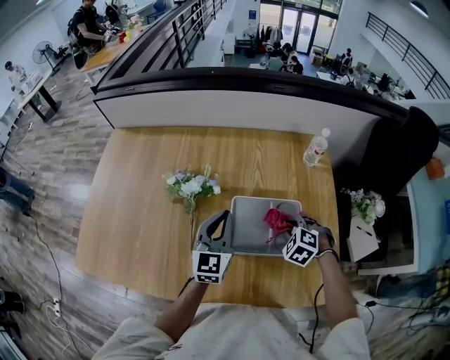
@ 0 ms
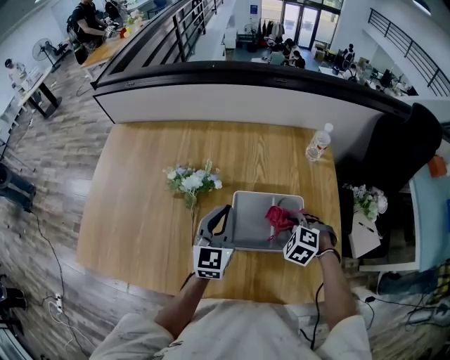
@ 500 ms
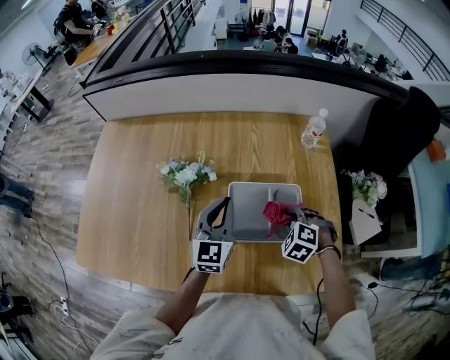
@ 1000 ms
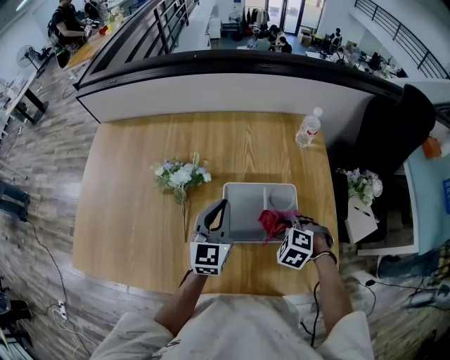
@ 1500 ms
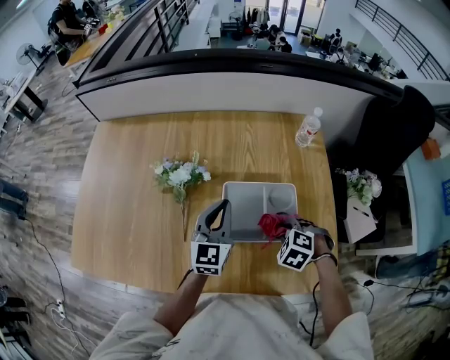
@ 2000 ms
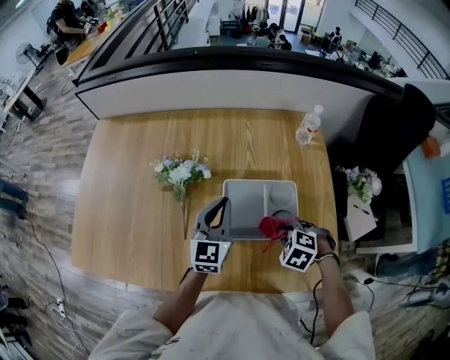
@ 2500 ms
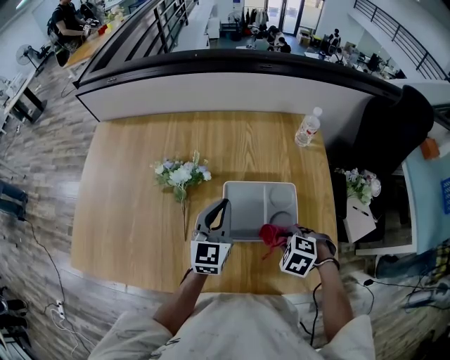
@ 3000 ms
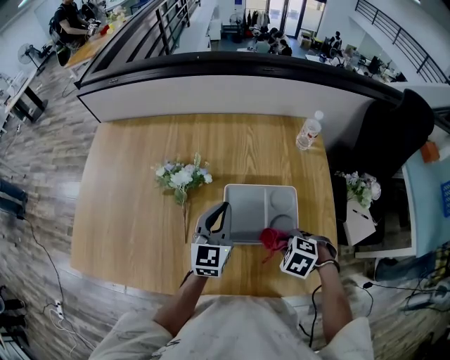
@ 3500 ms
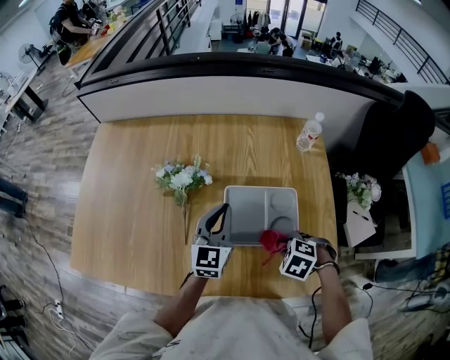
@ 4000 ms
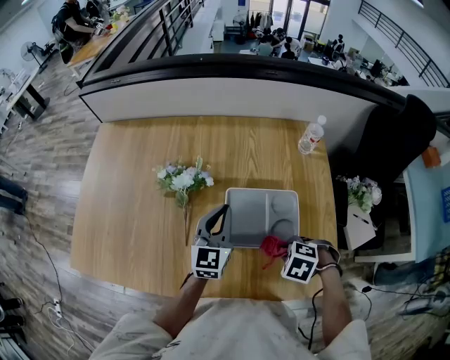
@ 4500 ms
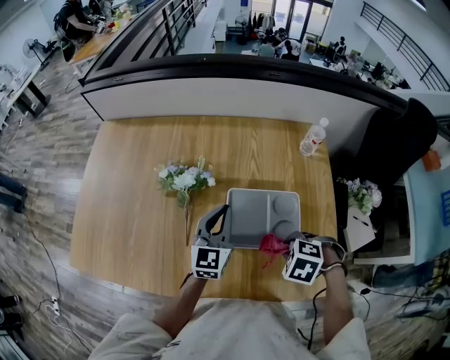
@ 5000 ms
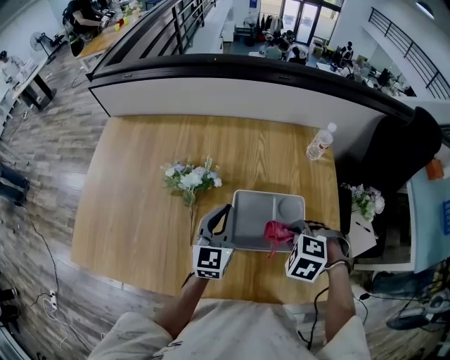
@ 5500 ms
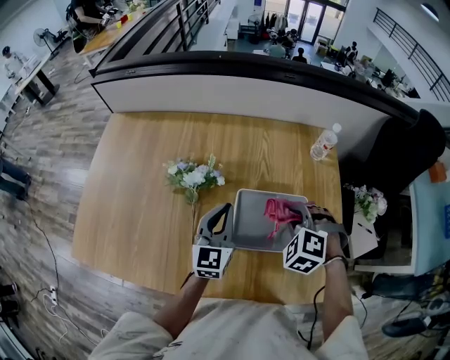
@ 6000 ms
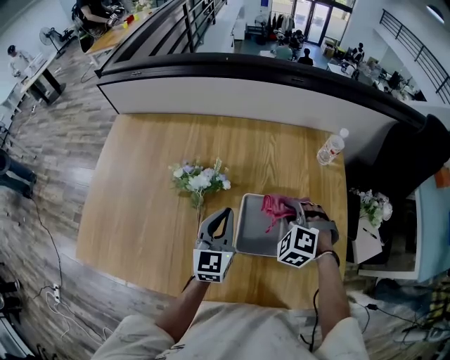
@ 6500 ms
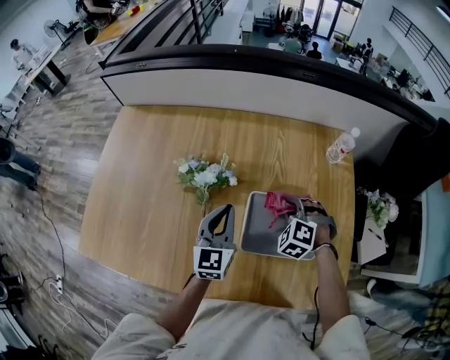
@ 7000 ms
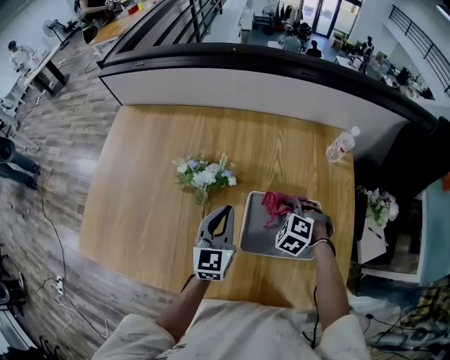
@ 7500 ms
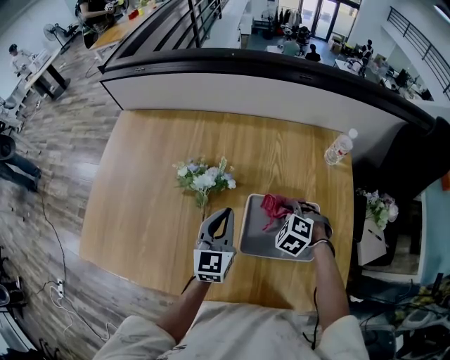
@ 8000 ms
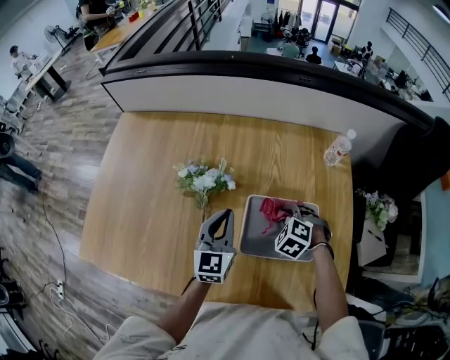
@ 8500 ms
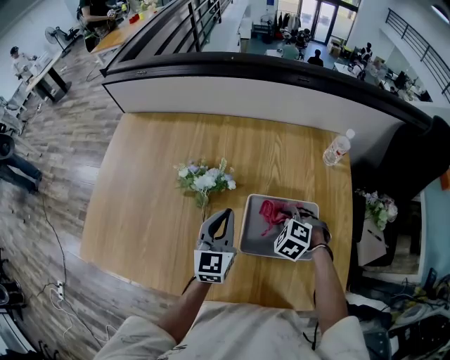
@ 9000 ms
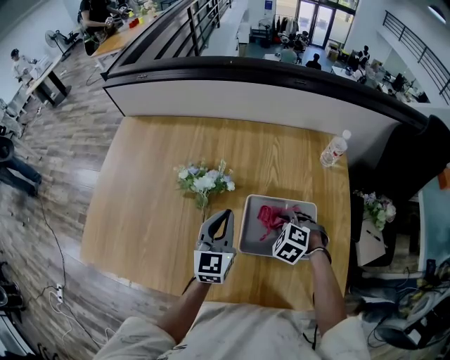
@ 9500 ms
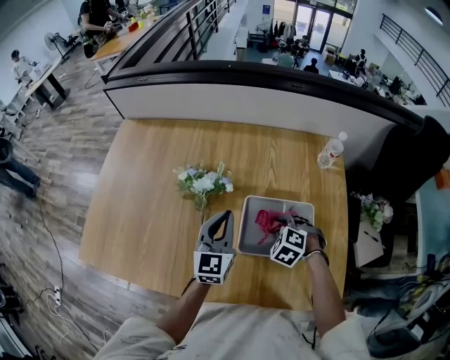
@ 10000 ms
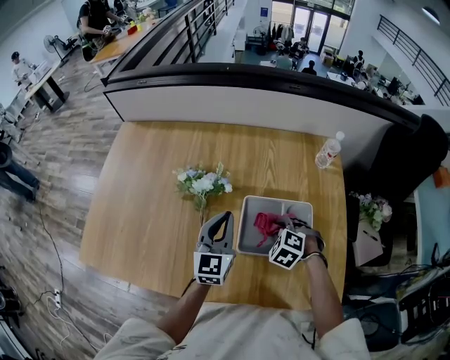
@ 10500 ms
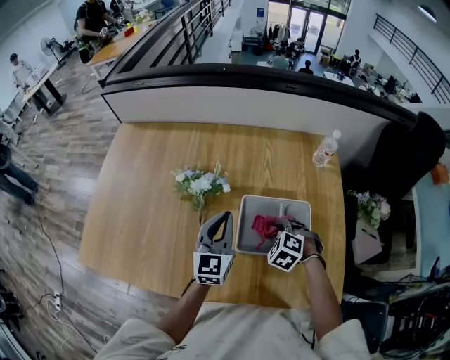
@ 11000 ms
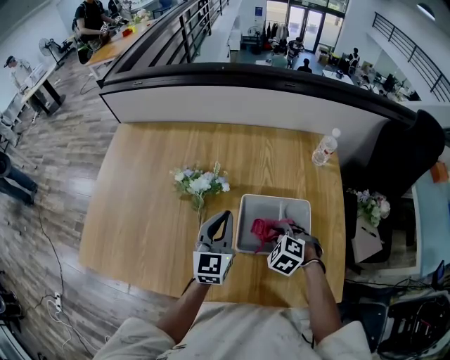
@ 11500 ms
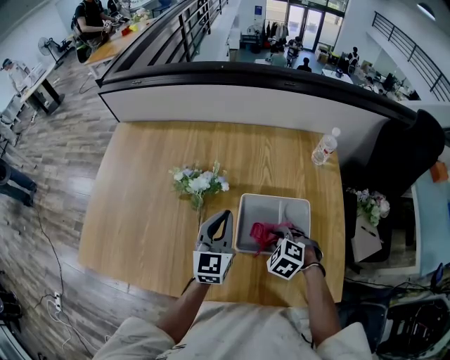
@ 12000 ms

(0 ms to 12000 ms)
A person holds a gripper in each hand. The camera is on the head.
0 ms - 2000 ms: The right gripper is displaced backward by roughly 5 cm.
2000 ms - 4000 ms: The grippers make only small movements.
4000 ms - 6000 ms: The right gripper changes place by approximately 15 cm, and swivels some 30 degrees.
6000 ms - 8000 ms: The right gripper goes roughly 10 cm downward.
8000 ms - 10000 ms: The grippers make only small movements.
10000 ms - 12000 ms: The right gripper goes about 5 cm backward.

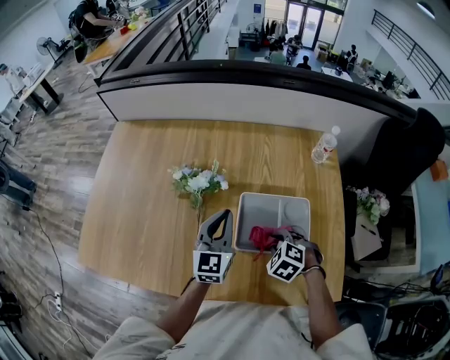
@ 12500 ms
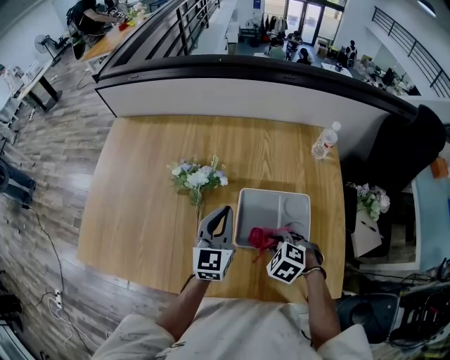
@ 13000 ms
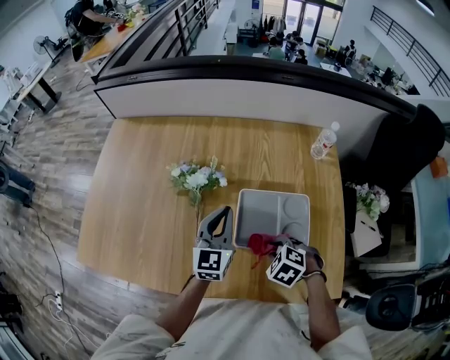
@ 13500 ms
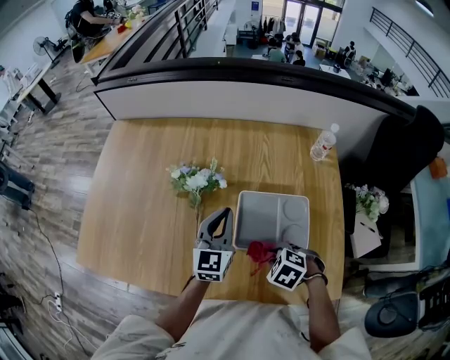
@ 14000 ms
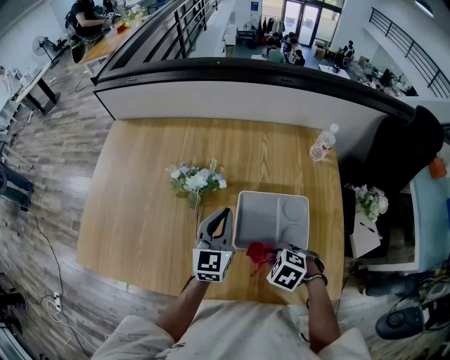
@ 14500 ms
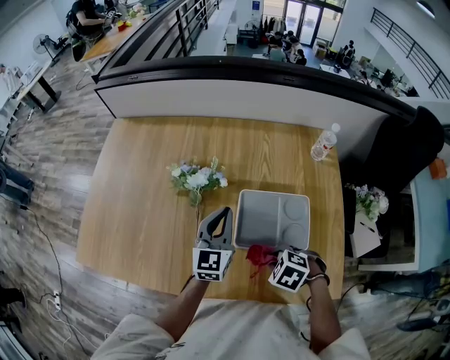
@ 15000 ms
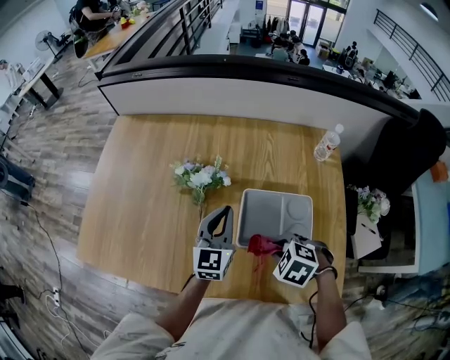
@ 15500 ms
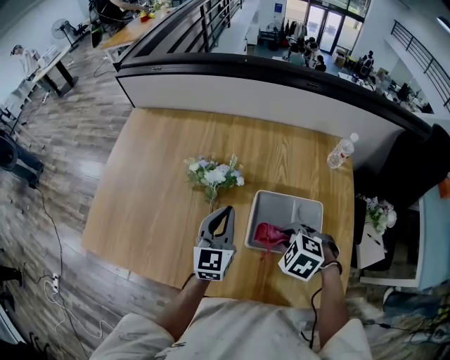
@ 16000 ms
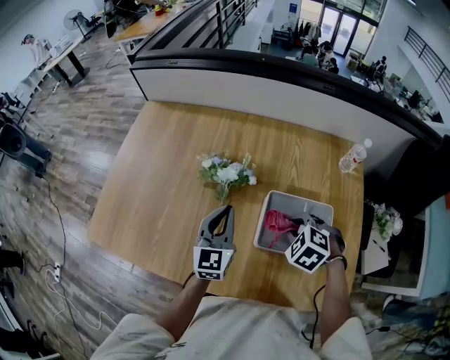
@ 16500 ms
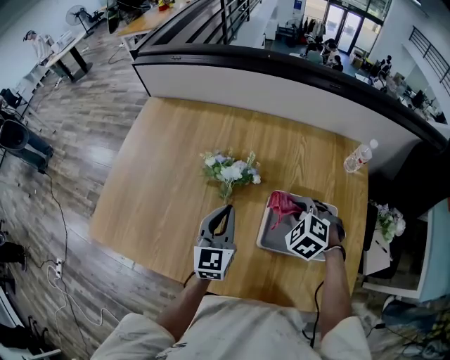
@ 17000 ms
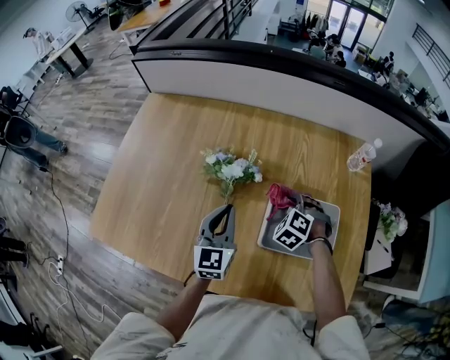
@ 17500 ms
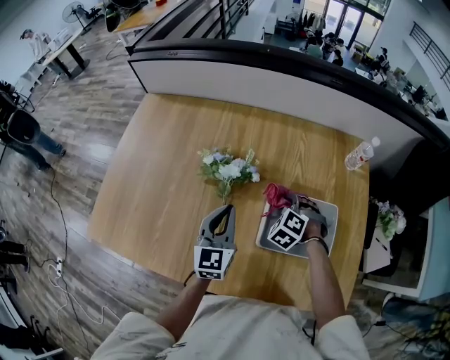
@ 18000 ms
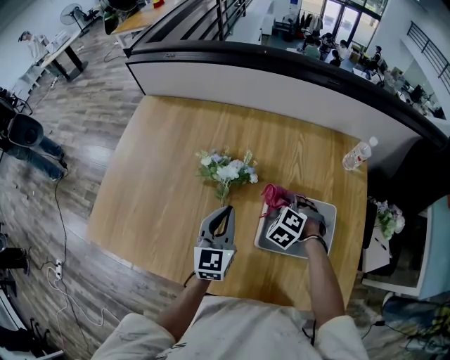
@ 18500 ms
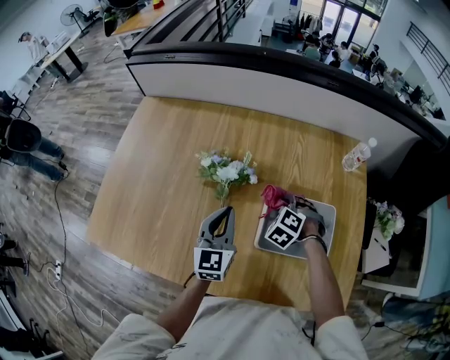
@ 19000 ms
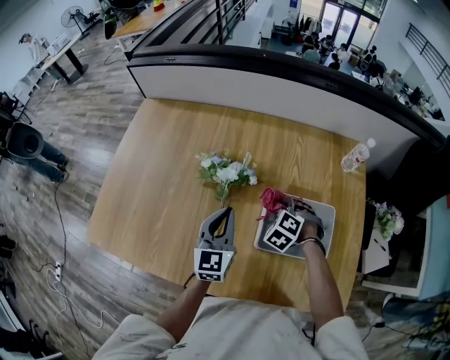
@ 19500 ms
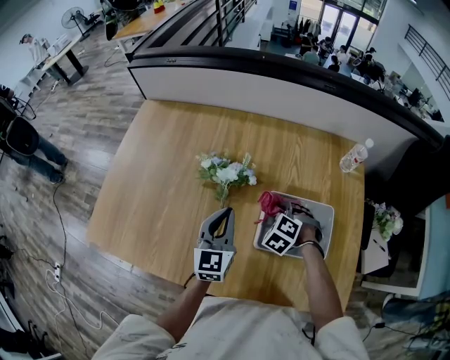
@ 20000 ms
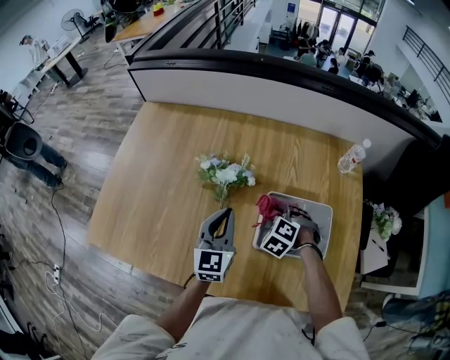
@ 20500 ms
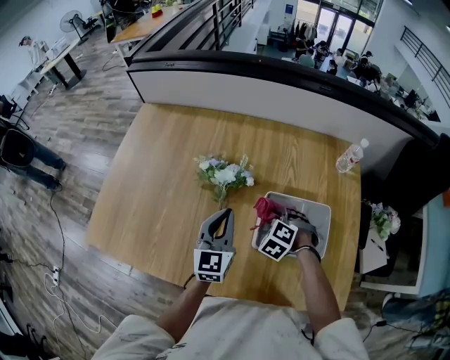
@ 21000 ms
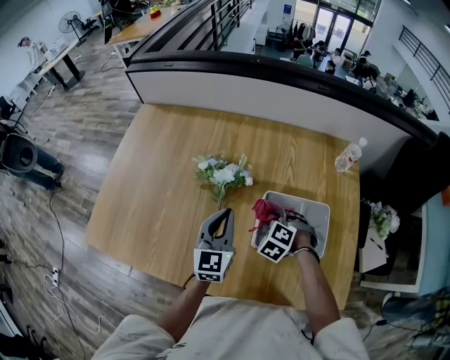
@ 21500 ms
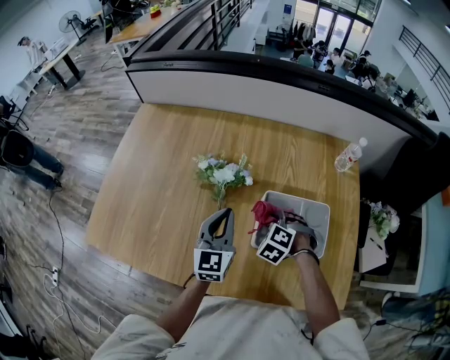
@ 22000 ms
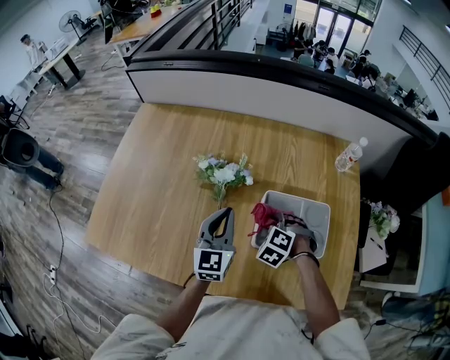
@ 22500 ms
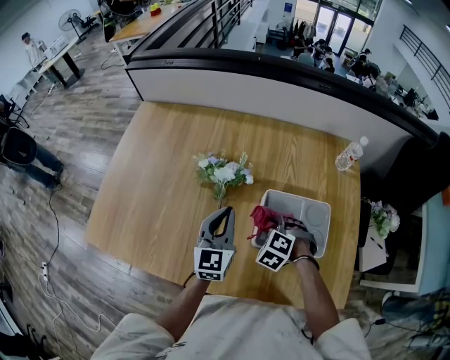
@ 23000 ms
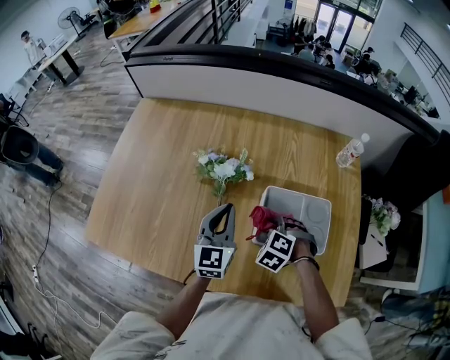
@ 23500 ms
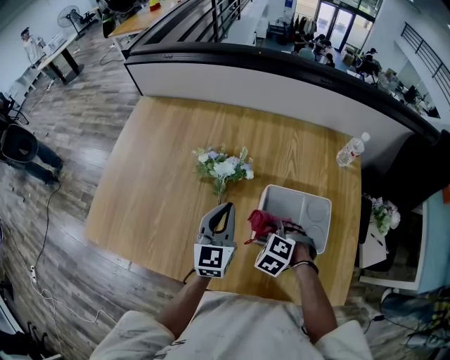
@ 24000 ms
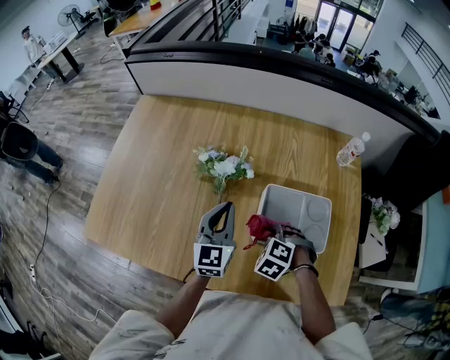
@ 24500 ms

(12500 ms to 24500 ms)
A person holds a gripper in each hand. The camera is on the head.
12500 ms - 14500 ms: The right gripper shifts by approximately 5 cm.
14500 ms - 16500 ms: The right gripper moves roughly 15 cm, while the left gripper ends up some 10 cm from where it was.
16500 ms - 18500 ms: The right gripper moves forward and downward, approximately 10 cm.
18500 ms - 20500 ms: The grippers move only a little.
20500 ms - 22500 ms: The grippers make only small movements.
22500 ms - 24500 ms: The right gripper goes some 5 cm backward.

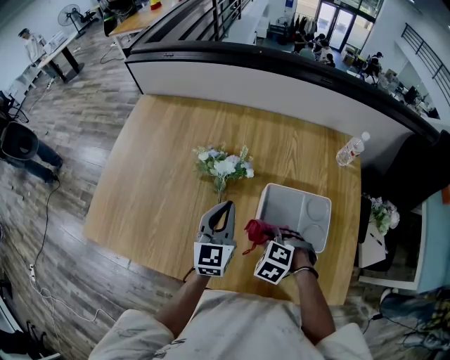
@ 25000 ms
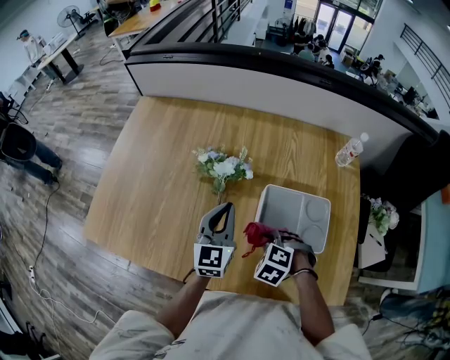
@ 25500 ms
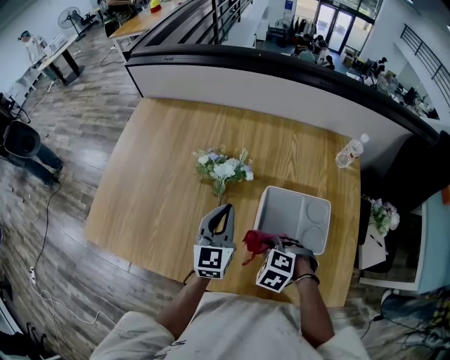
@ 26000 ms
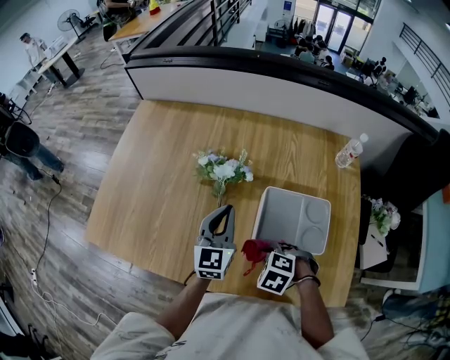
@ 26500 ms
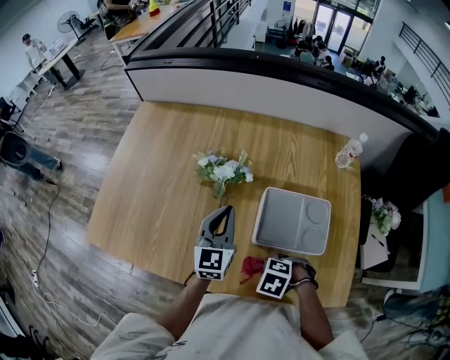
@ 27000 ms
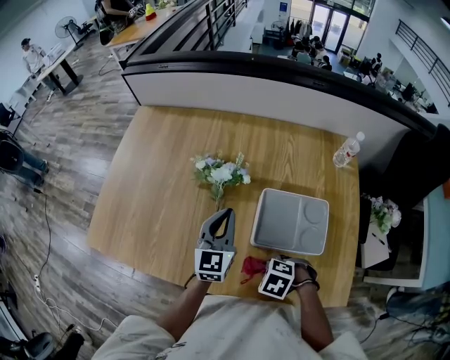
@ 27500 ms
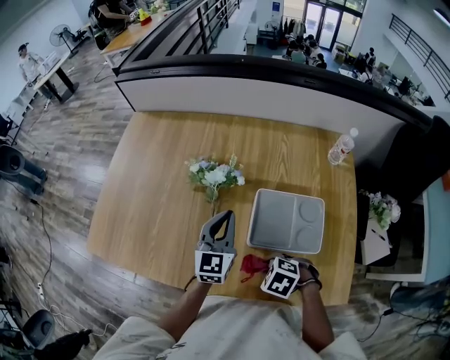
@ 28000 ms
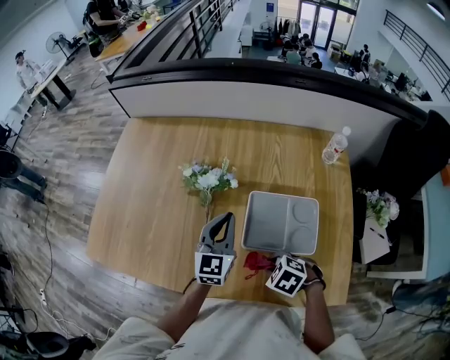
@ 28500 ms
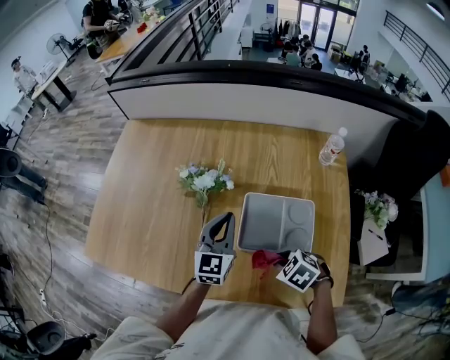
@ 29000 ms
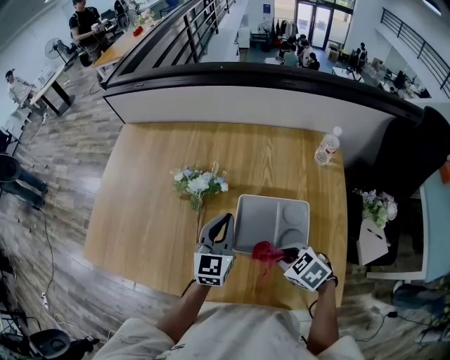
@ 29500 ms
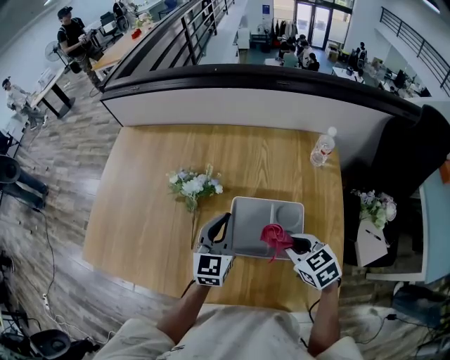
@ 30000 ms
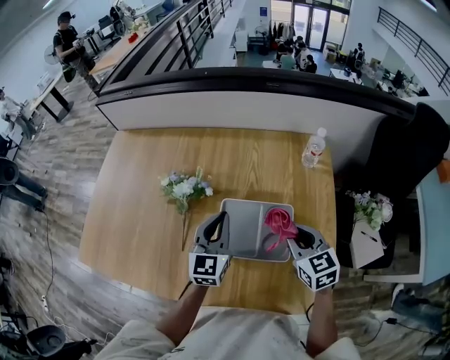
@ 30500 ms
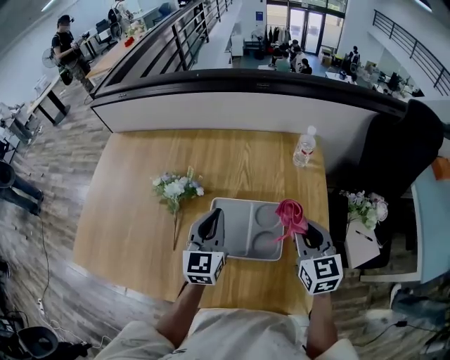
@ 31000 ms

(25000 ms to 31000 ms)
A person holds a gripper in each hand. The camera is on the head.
25000 ms - 27000 ms: The right gripper moves approximately 10 cm, and swivels about 20 degrees.
27000 ms - 29000 ms: The left gripper ends up about 5 cm from where it was; the right gripper shifts by roughly 10 cm, and turns by about 30 degrees.
29000 ms - 31000 ms: The left gripper changes place by approximately 10 cm; the right gripper moves some 25 cm, and tilts its fingers approximately 50 degrees upward.
